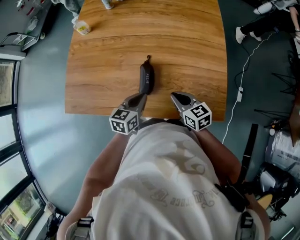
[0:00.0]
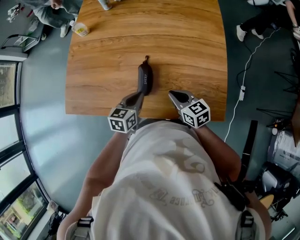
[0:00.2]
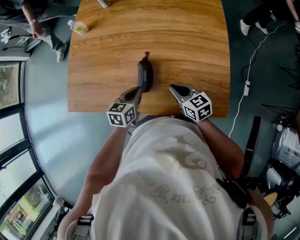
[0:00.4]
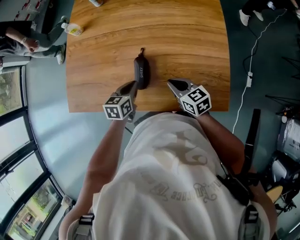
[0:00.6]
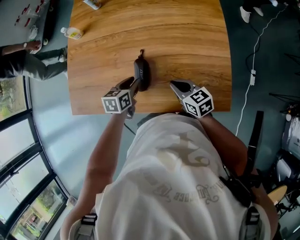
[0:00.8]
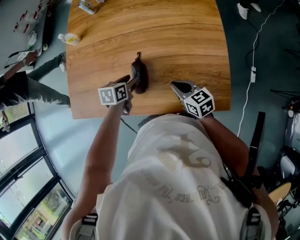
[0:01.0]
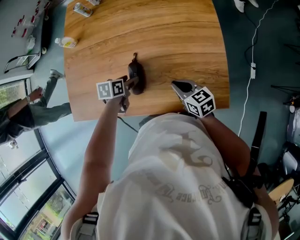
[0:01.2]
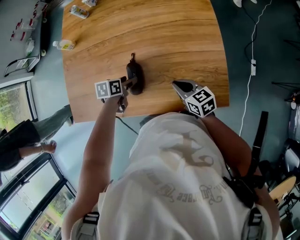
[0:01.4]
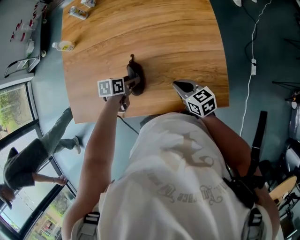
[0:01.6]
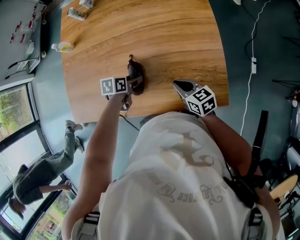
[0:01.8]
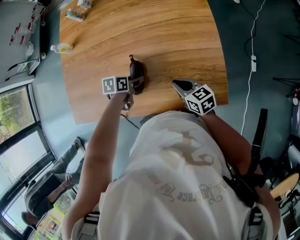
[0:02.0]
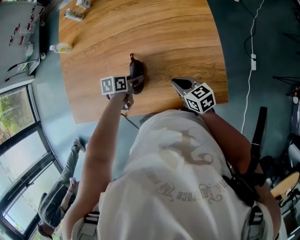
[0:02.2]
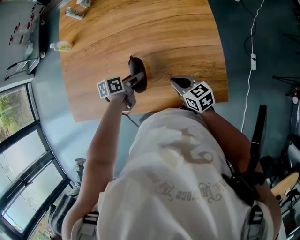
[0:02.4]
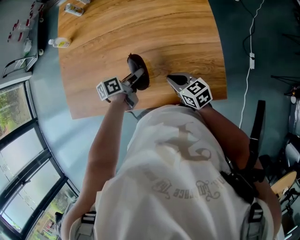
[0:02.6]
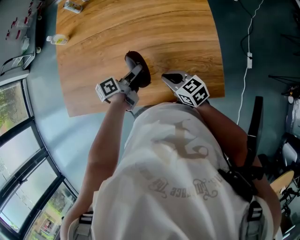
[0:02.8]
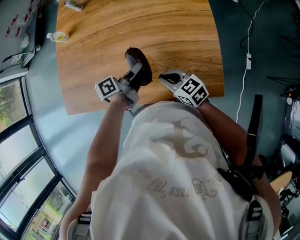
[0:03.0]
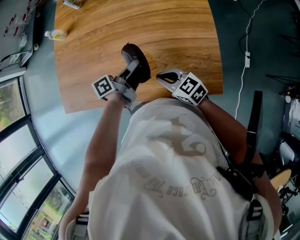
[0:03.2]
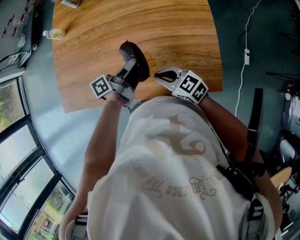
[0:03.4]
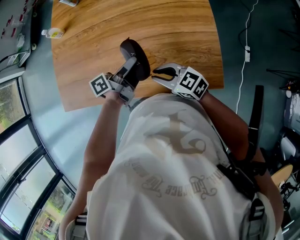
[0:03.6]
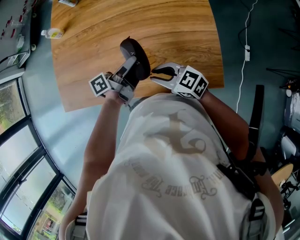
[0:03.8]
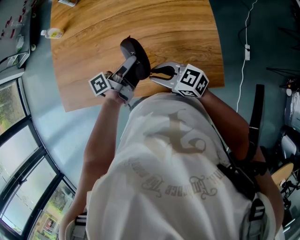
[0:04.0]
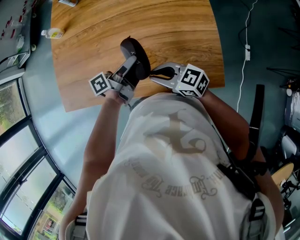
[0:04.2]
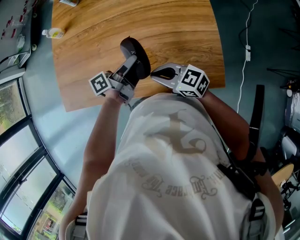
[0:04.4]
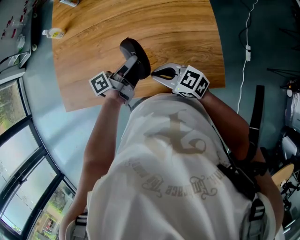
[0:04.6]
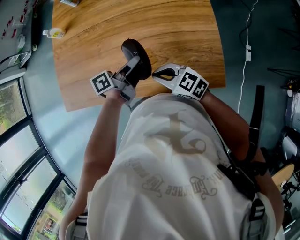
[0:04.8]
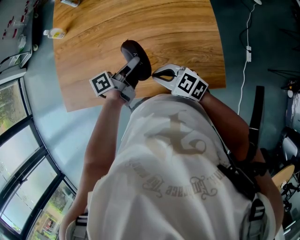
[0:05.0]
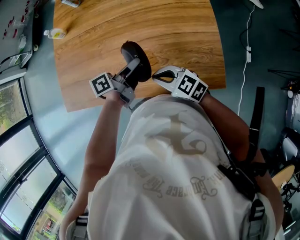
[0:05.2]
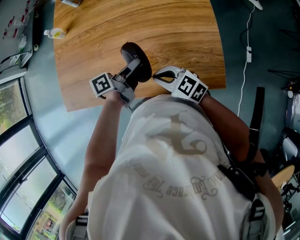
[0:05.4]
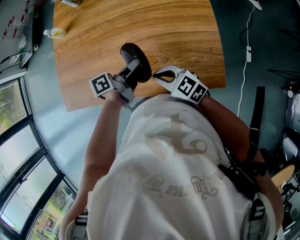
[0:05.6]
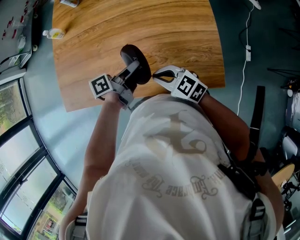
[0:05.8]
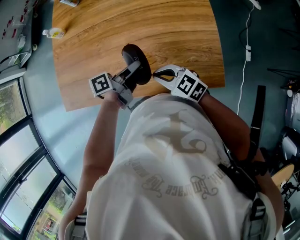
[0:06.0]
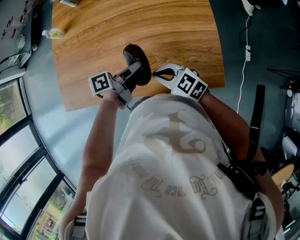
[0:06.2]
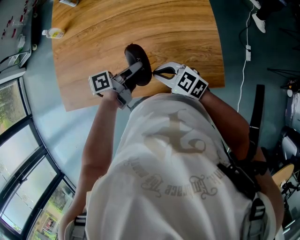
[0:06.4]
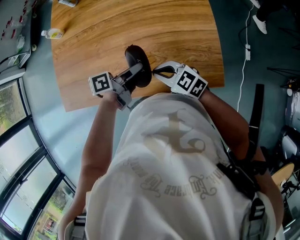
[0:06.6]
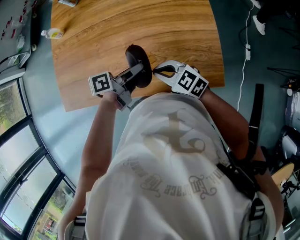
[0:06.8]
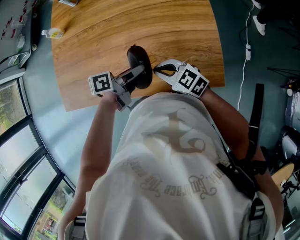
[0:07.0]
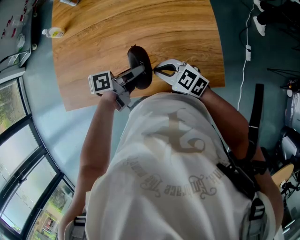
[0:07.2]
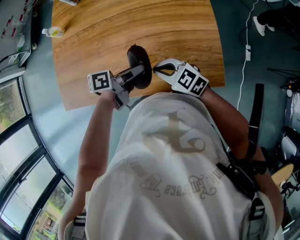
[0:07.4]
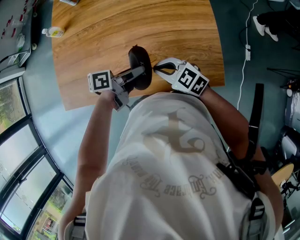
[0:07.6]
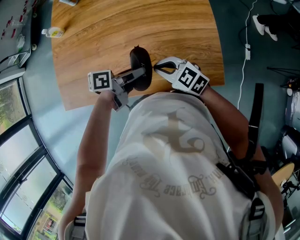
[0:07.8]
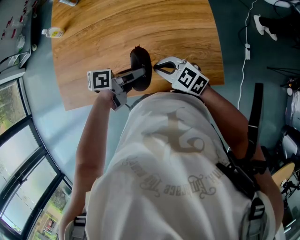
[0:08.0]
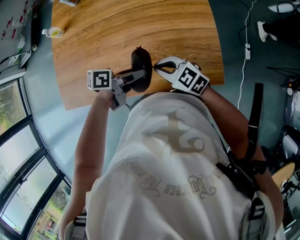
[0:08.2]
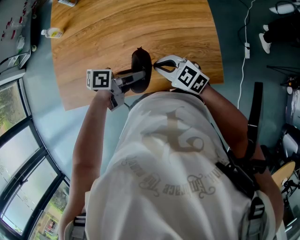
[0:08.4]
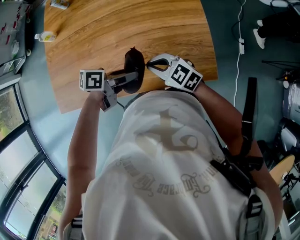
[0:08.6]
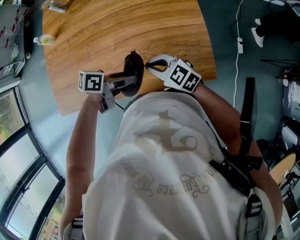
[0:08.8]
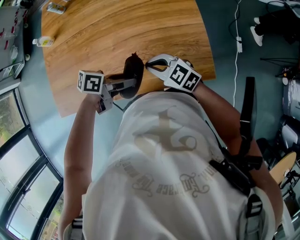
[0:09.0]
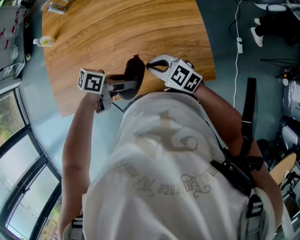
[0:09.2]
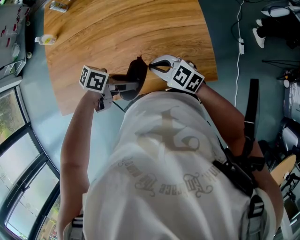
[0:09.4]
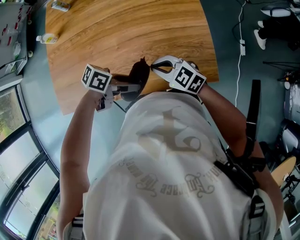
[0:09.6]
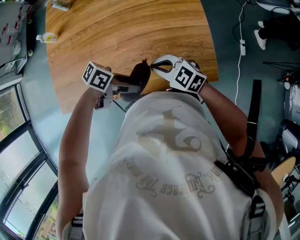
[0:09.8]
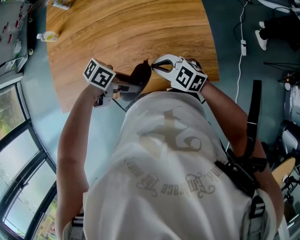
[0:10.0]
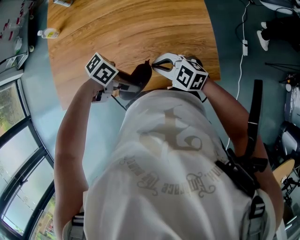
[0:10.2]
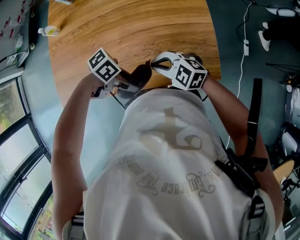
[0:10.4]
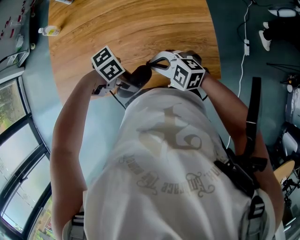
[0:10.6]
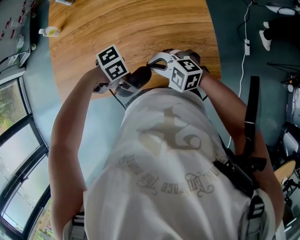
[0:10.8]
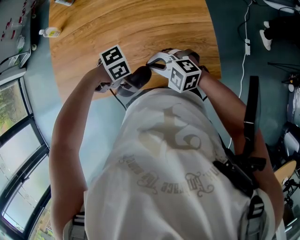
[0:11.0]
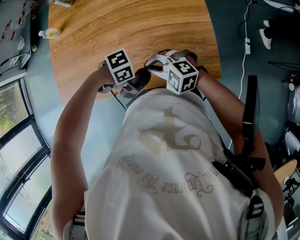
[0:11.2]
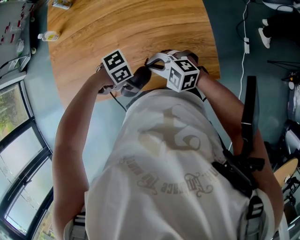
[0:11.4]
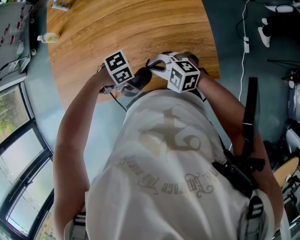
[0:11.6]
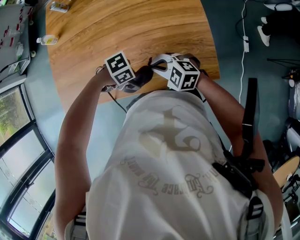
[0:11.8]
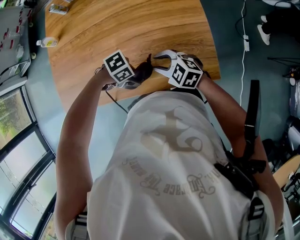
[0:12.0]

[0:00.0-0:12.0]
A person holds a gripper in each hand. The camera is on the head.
0:00.0 to 0:01.6: The left gripper moves forward and downward, some 10 cm, swivels roughly 30 degrees, and opens up, while the right gripper is displaced to the right by some 5 cm.
0:01.6 to 0:03.0: The left gripper is displaced upward and to the right by roughly 15 cm, and points its fingers some 40 degrees further upward.
0:03.0 to 0:04.4: The right gripper moves about 5 cm.
0:04.4 to 0:06.0: The grippers stay close to where they were, moving slightly.
0:06.0 to 0:07.6: The grippers make only small movements.
0:07.6 to 0:09.0: The left gripper rotates about 30 degrees.
0:09.0 to 0:10.4: The left gripper changes place by about 5 cm, and changes its angle by some 40 degrees; the right gripper turns by approximately 20 degrees.
0:10.4 to 0:12.0: The left gripper moves downward, approximately 5 cm, and turns by roughly 30 degrees, while the right gripper ends up some 5 cm from where it was, and opens.

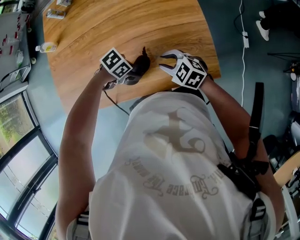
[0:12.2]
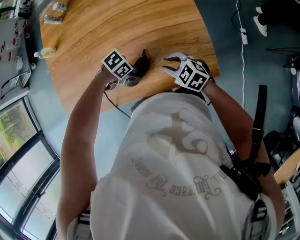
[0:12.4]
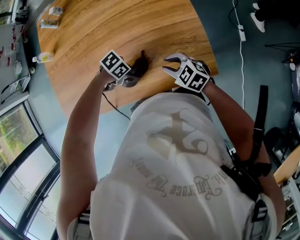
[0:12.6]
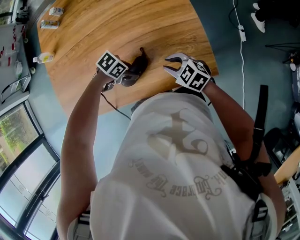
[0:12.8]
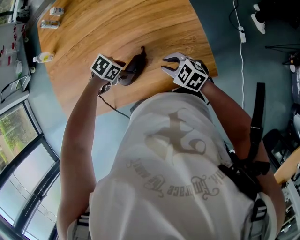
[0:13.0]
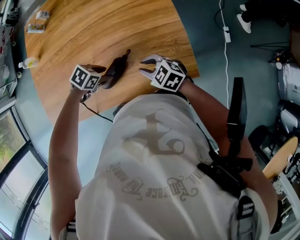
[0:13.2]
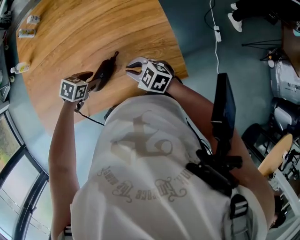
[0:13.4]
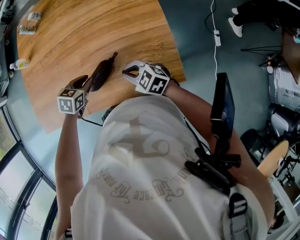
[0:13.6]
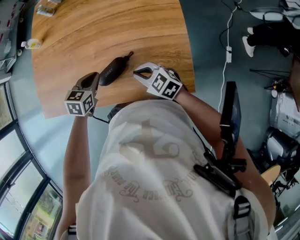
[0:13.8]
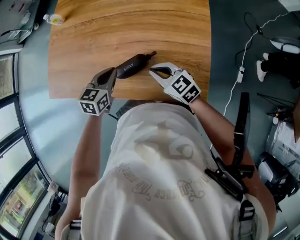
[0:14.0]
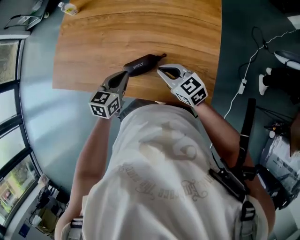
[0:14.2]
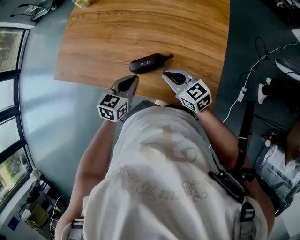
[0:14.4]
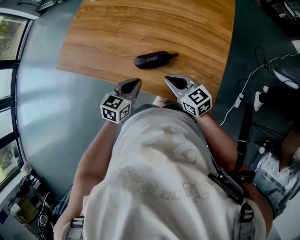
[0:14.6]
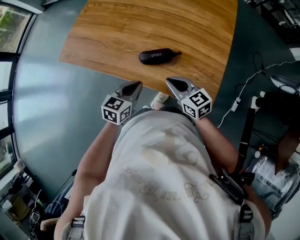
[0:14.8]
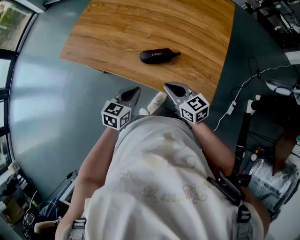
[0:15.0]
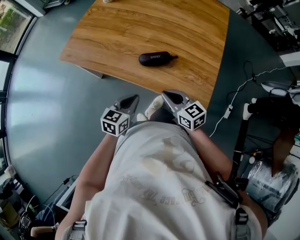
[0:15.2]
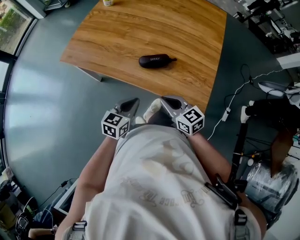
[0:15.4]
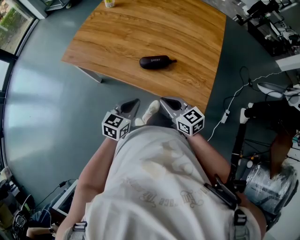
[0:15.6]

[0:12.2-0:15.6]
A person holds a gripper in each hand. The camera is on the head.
0:12.2 to 0:13.8: The left gripper ends up about 10 cm from where it was, swivels some 60 degrees, and closes its fingers, while the right gripper closes up.
0:13.8 to 0:15.6: The left gripper moves backward, some 25 cm, and swivels approximately 30 degrees; the right gripper is displaced backward and to the left by about 15 cm.

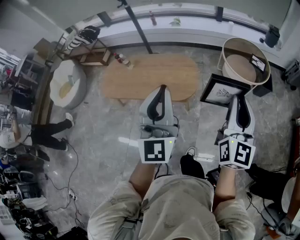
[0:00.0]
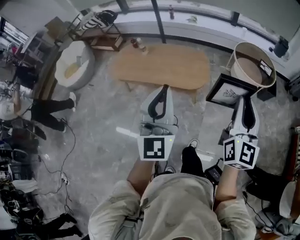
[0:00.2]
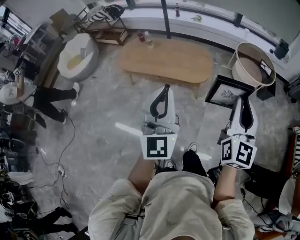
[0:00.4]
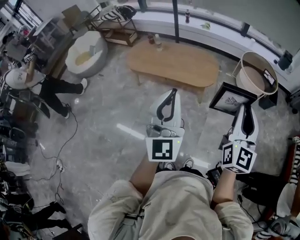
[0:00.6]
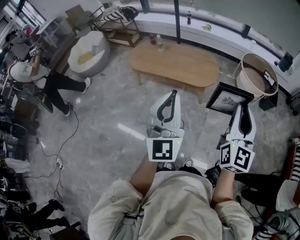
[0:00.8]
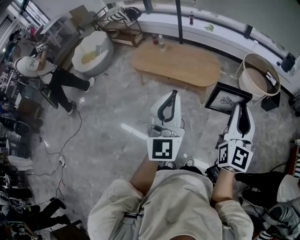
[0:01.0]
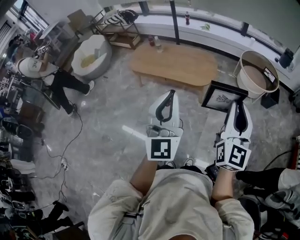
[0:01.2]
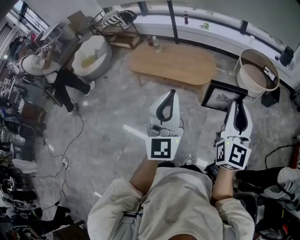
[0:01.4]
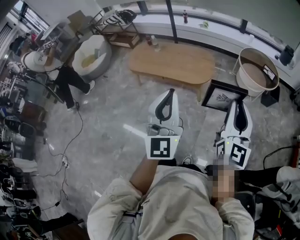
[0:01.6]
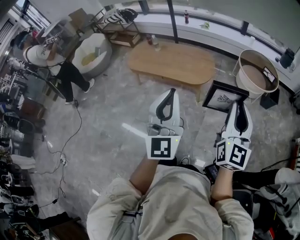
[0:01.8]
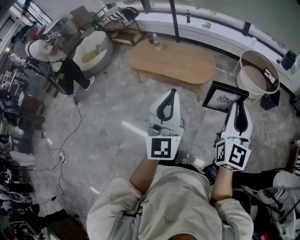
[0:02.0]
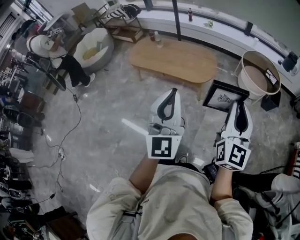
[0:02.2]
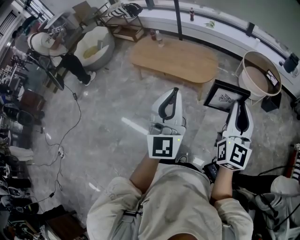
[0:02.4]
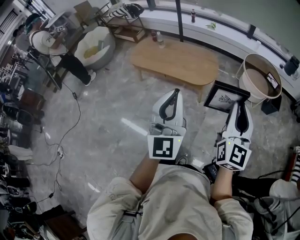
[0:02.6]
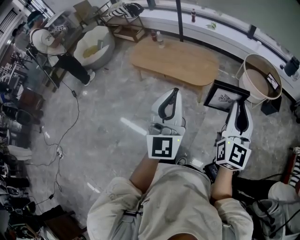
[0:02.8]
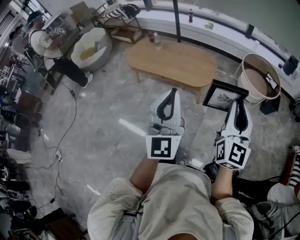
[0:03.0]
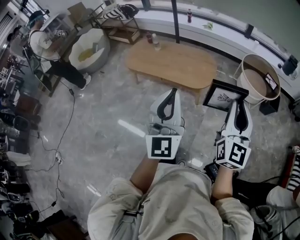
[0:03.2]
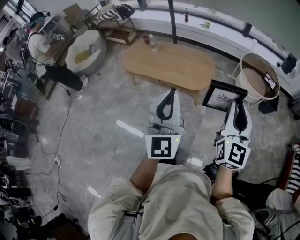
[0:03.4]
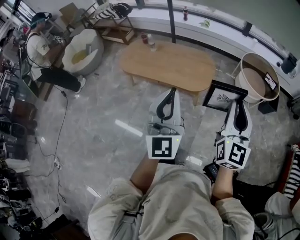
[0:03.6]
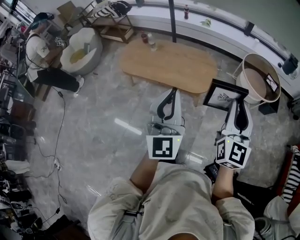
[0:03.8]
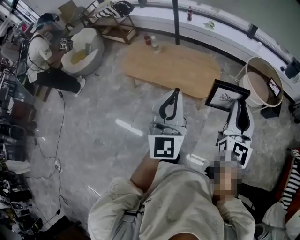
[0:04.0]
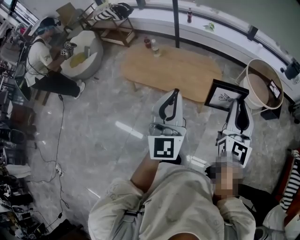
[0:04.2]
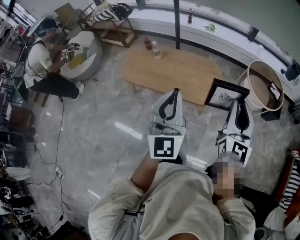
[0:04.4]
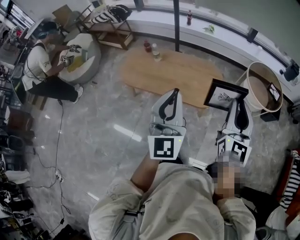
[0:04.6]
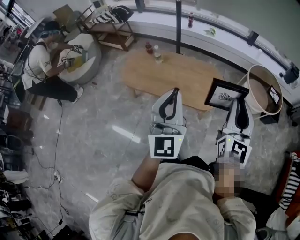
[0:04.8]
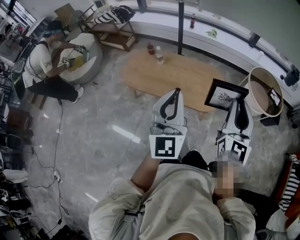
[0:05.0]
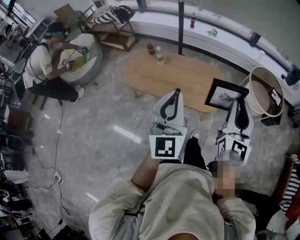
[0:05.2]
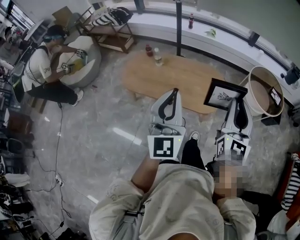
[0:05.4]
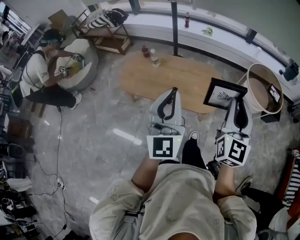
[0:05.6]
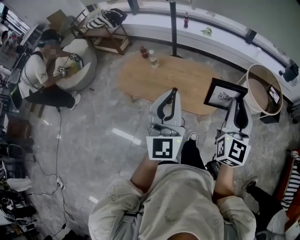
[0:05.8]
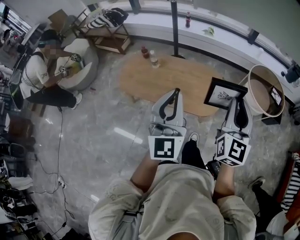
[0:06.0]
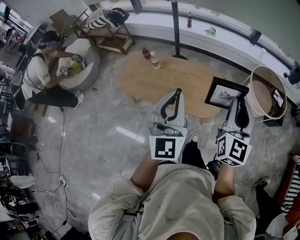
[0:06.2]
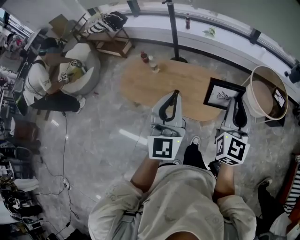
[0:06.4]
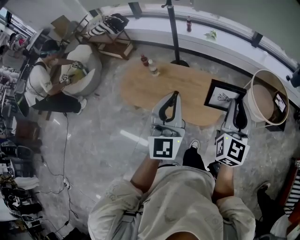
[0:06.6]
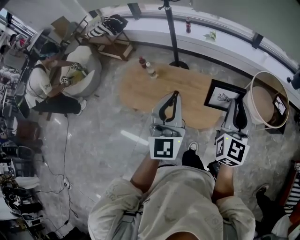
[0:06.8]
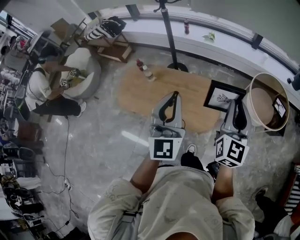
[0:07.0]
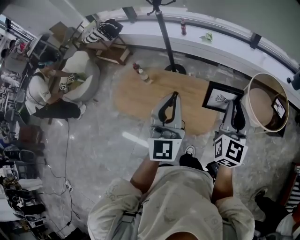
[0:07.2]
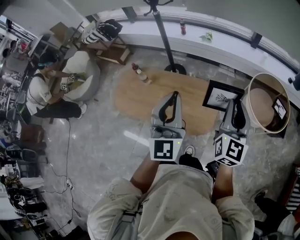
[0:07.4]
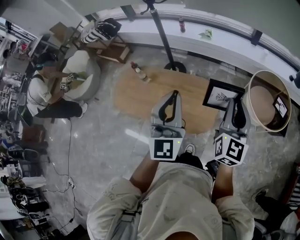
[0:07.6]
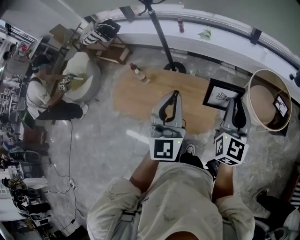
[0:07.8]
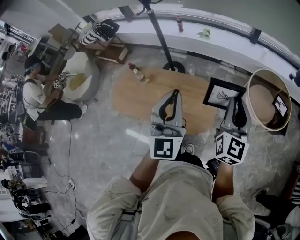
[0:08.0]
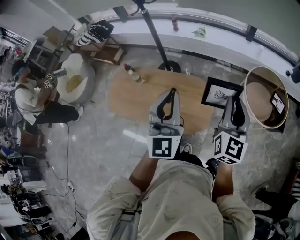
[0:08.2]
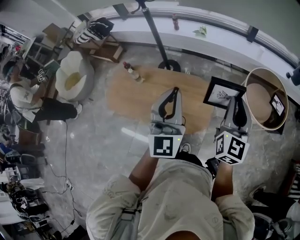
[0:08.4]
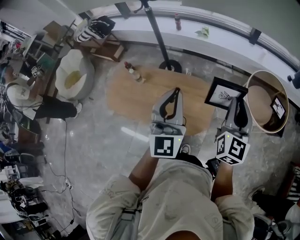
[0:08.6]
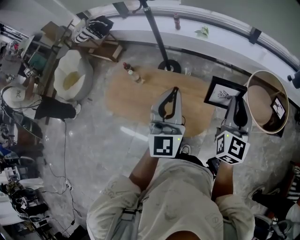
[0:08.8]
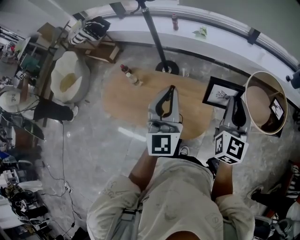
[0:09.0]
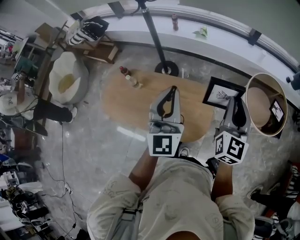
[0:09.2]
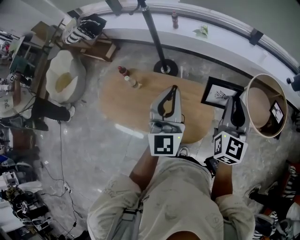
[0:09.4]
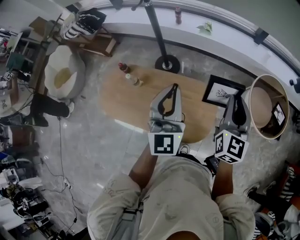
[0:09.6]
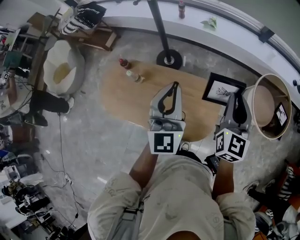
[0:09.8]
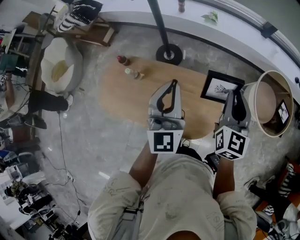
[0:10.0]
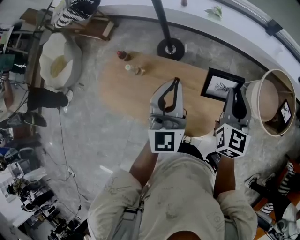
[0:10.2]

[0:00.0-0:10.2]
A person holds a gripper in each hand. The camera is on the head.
0:00.0 to 0:01.4: The grippers both shift backward by approximately 25 cm.
0:01.4 to 0:03.0: The right gripper travels forward by approximately 5 cm.
0:03.0 to 0:04.4: Both grippers travel together forward and to the left, approximately 25 cm.
0:04.4 to 0:05.8: The two grippers go roughly 10 cm forward.
0:05.8 to 0:07.2: Both grippers move forward and to the right, approximately 20 cm.
0:07.2 to 0:08.8: Both grippers move forward, about 10 cm.
0:08.8 to 0:10.2: The two grippers go roughly 25 cm forward, to the left and downward.
